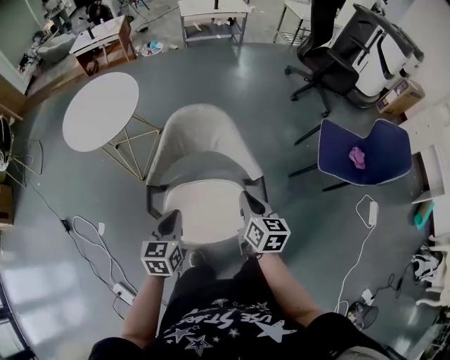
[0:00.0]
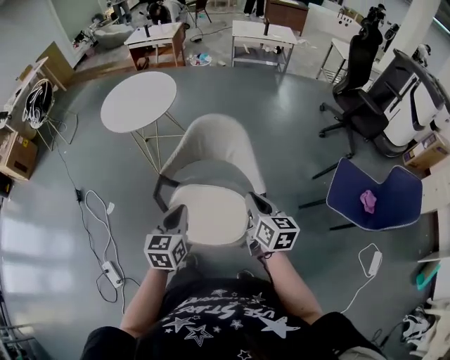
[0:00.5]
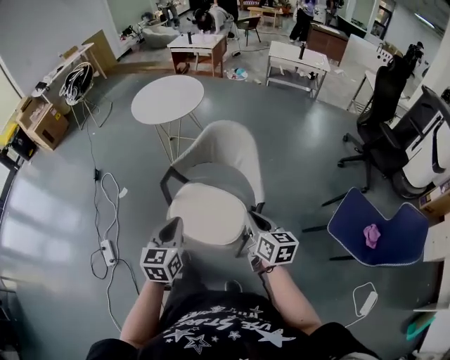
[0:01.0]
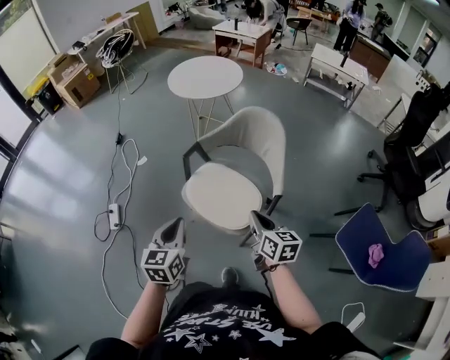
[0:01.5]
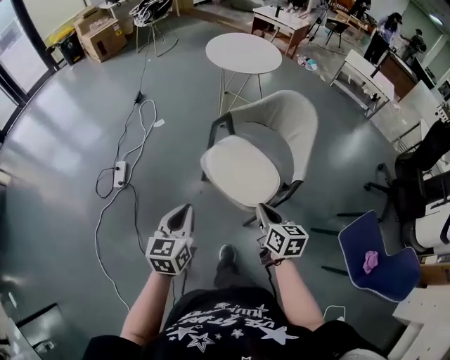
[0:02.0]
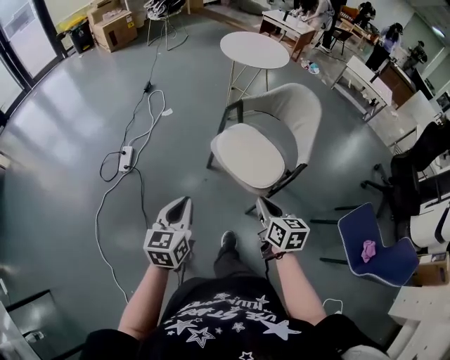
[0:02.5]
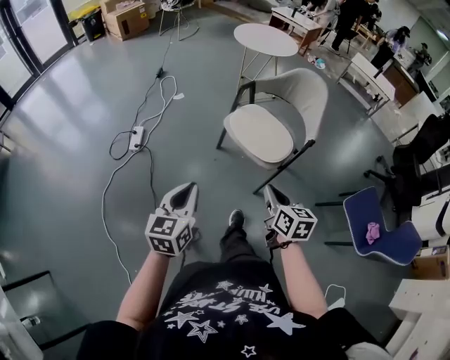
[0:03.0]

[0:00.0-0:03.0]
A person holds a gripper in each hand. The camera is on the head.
0:00.0 to 0:01.5: The right gripper changes place by approximately 10 cm, and swivels about 50 degrees. The left gripper changes place by roughly 25 cm, and turns by some 40 degrees.
0:01.5 to 0:03.0: The grippers both shift backward and to the left by about 30 cm.

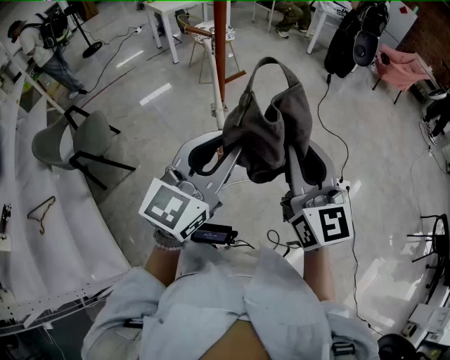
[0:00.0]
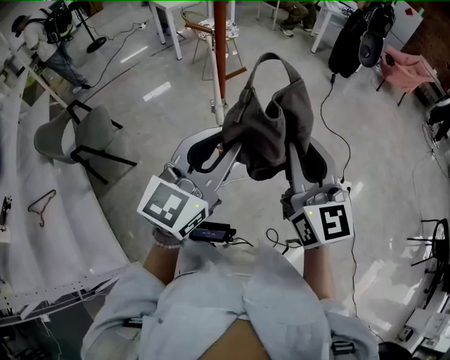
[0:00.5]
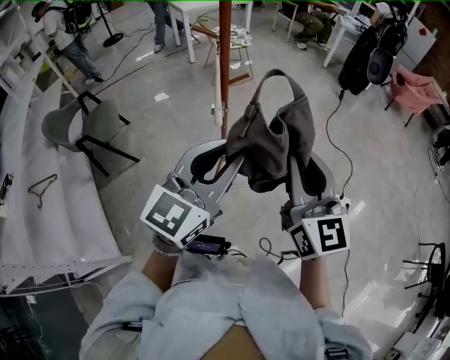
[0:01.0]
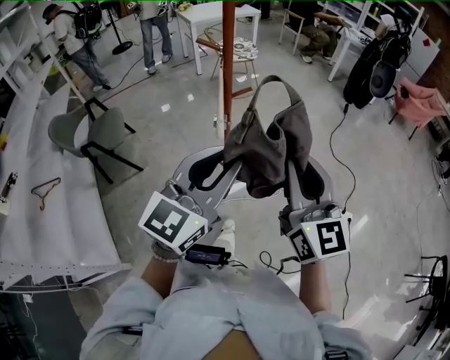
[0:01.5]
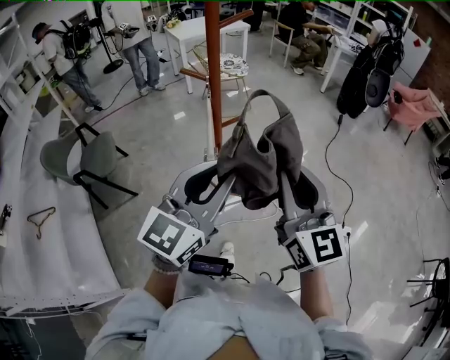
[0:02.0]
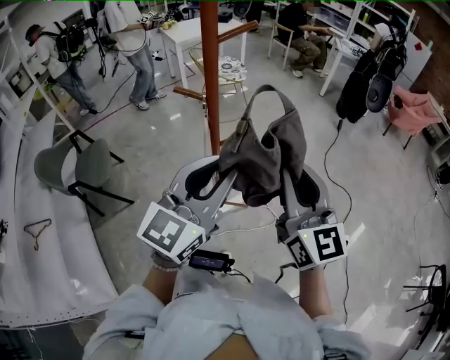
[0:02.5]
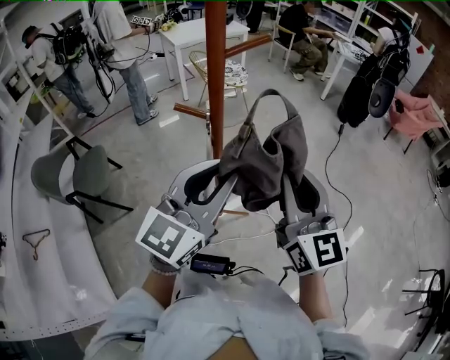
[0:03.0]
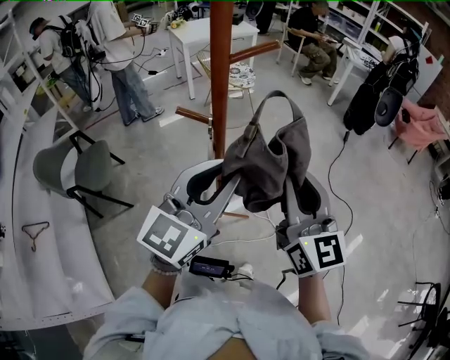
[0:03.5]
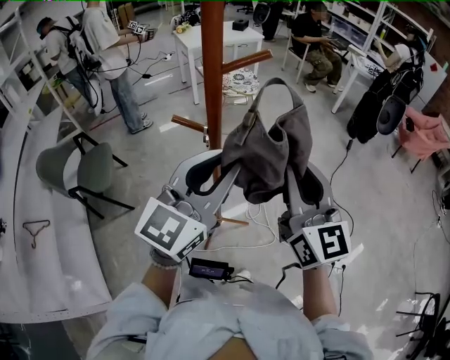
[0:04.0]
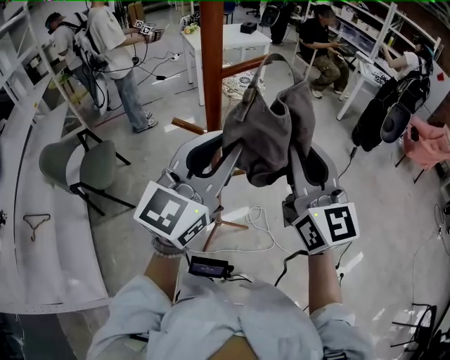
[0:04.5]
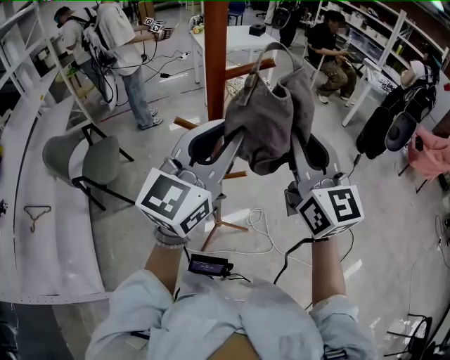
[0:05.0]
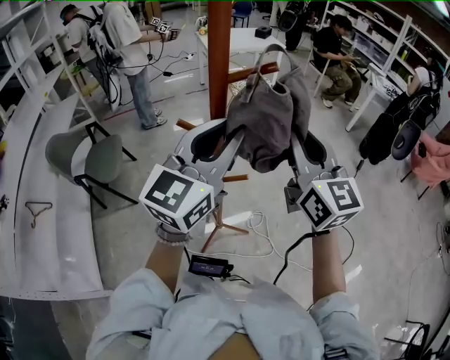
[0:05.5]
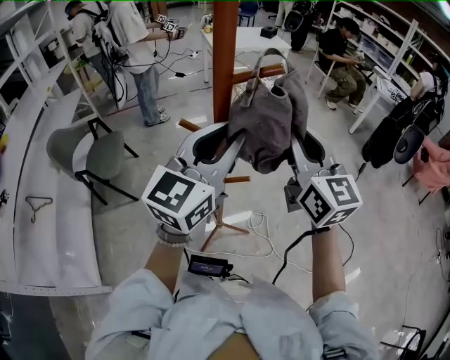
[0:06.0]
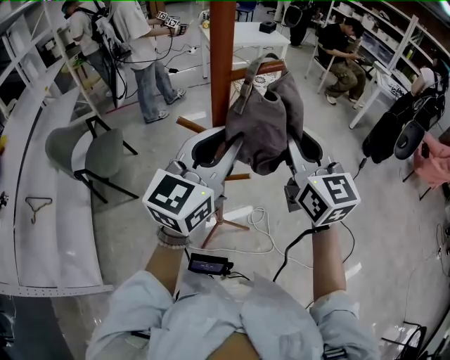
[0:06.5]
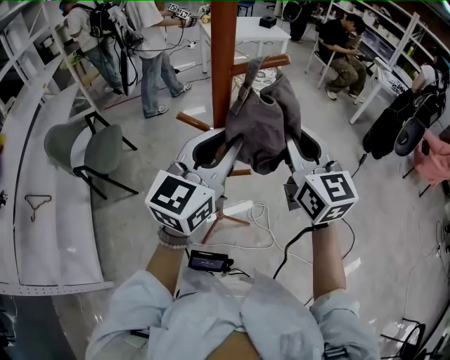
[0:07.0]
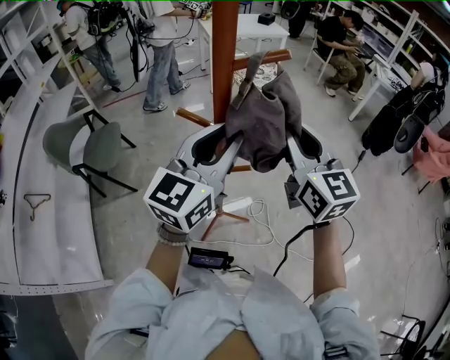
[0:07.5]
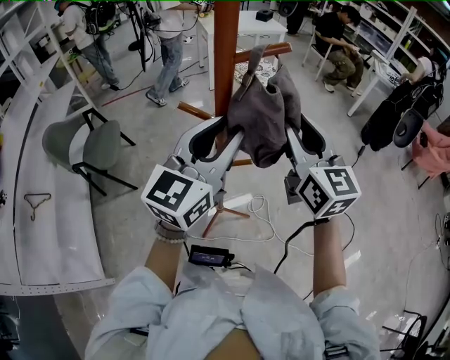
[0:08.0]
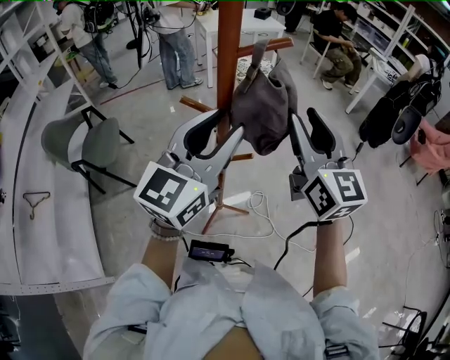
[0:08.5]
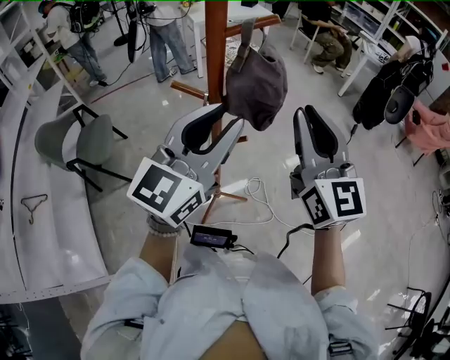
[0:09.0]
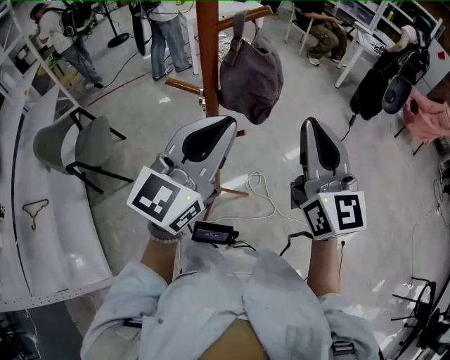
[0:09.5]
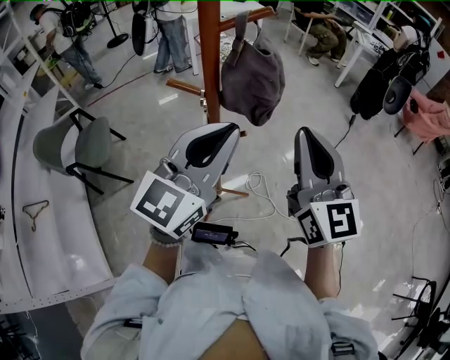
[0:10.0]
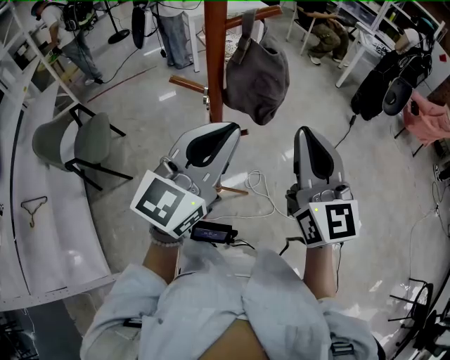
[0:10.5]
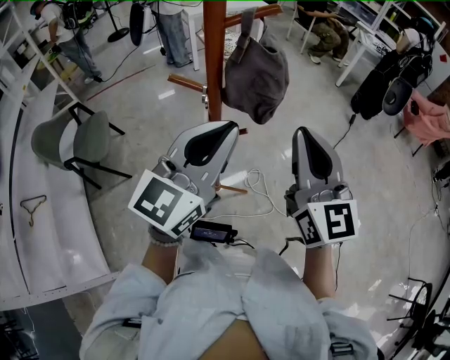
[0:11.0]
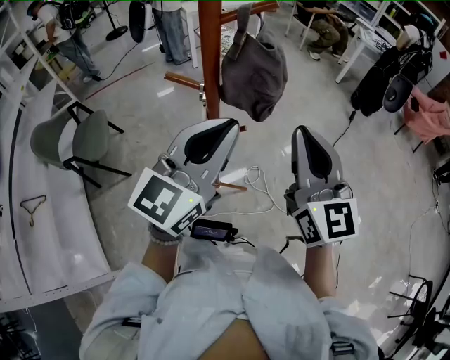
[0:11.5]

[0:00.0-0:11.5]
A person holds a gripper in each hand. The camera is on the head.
0:00.0 to 0:02.0: The grippers both shift forward by approximately 10 cm.
0:02.0 to 0:04.0: The two grippers go approximately 20 cm forward.
0:04.0 to 0:06.0: The left gripper is displaced forward by some 5 cm; the right gripper is displaced forward by roughly 10 cm.
0:06.0 to 0:07.5: There are only small adjustments of the grippers.
0:07.5 to 0:09.5: The grippers both shift backward by about 10 cm. The right gripper opens, then closes again.
0:09.5 to 0:11.5: The grippers move only a little.

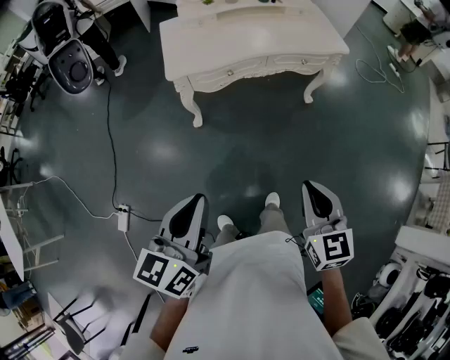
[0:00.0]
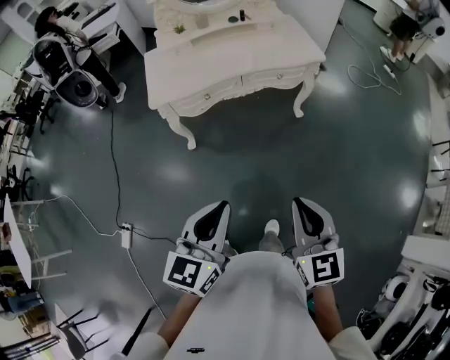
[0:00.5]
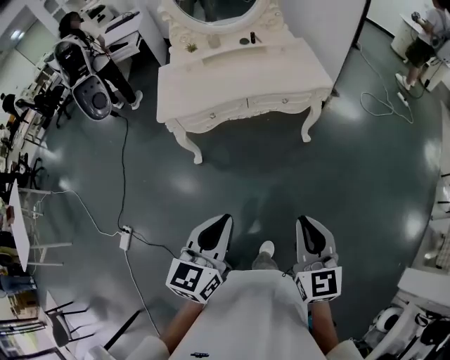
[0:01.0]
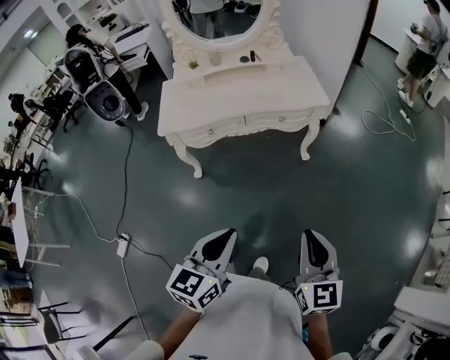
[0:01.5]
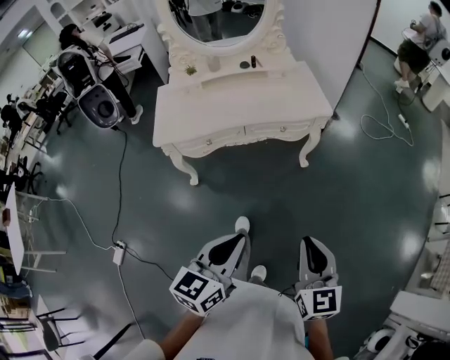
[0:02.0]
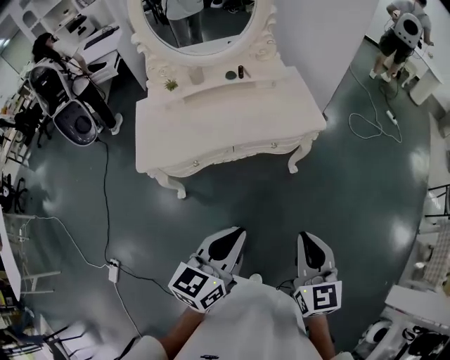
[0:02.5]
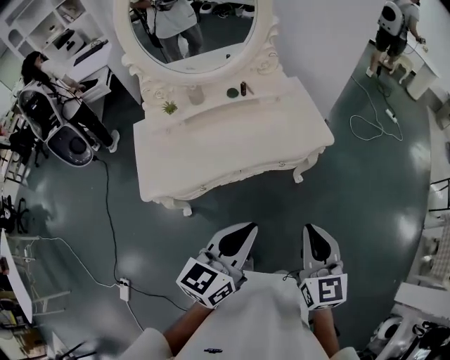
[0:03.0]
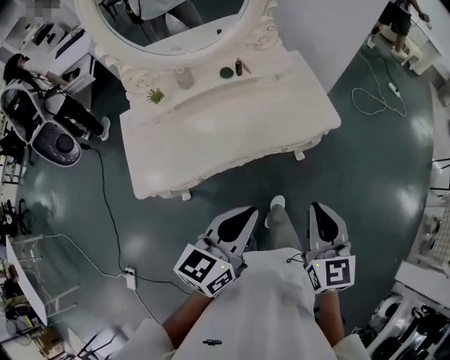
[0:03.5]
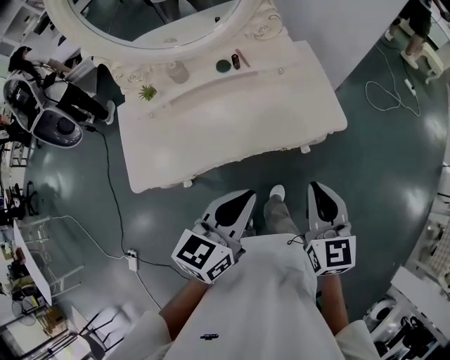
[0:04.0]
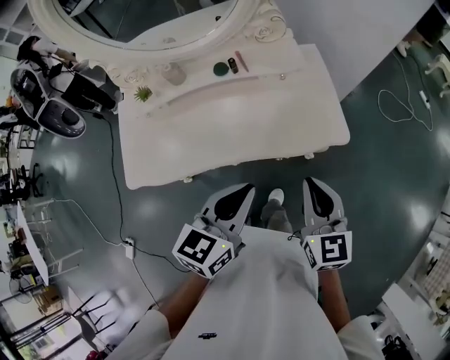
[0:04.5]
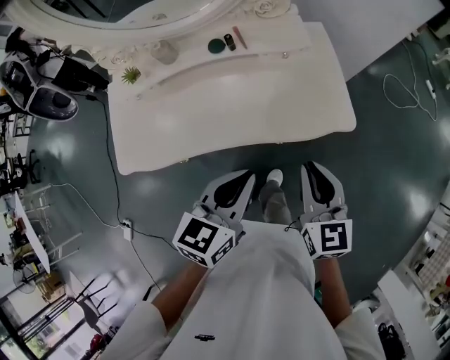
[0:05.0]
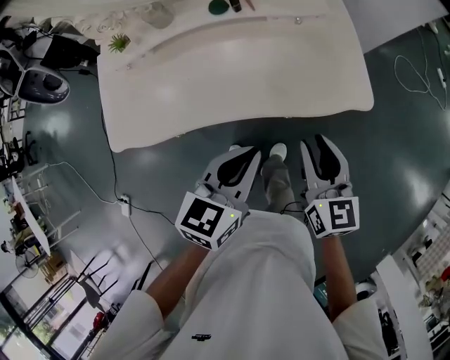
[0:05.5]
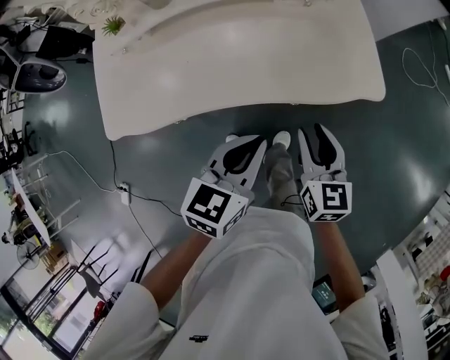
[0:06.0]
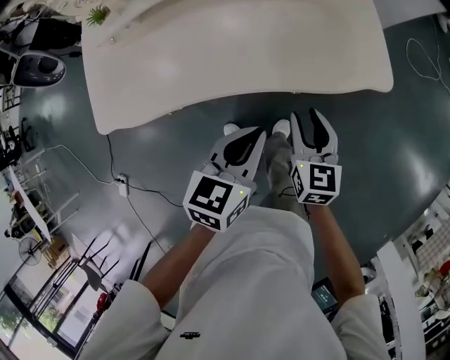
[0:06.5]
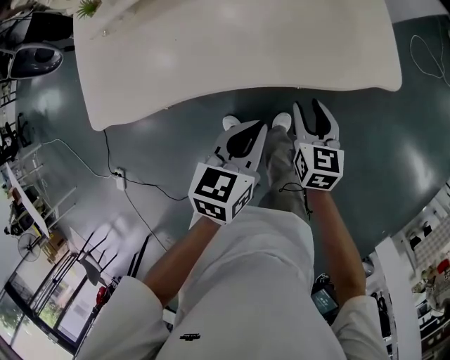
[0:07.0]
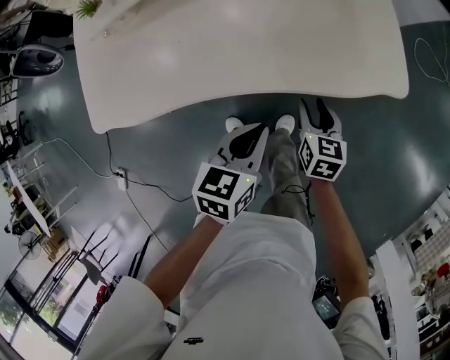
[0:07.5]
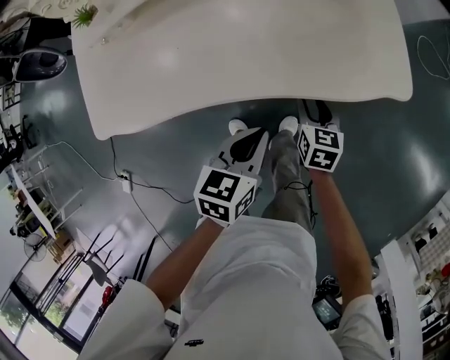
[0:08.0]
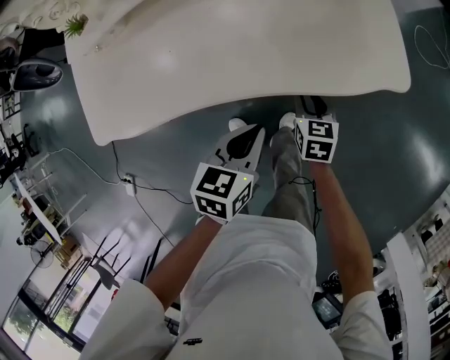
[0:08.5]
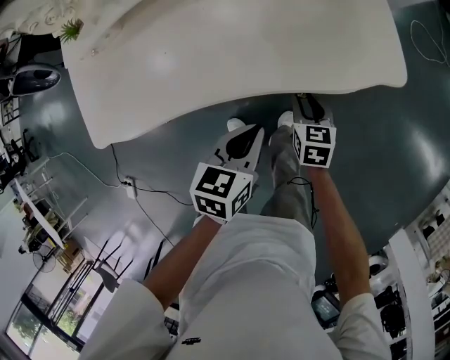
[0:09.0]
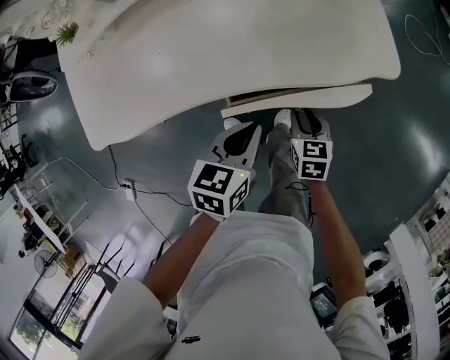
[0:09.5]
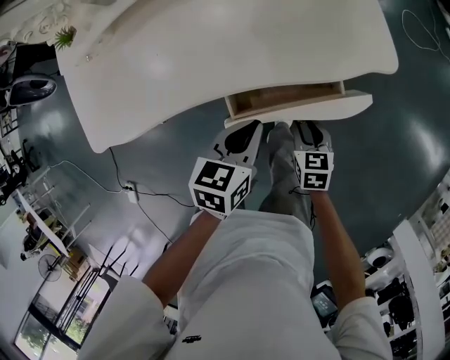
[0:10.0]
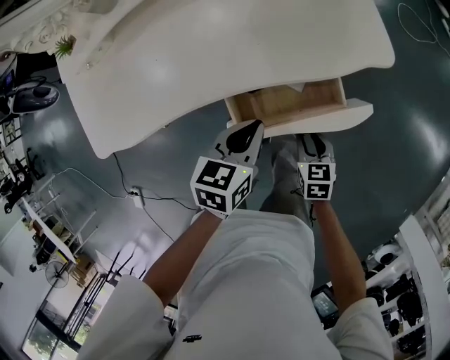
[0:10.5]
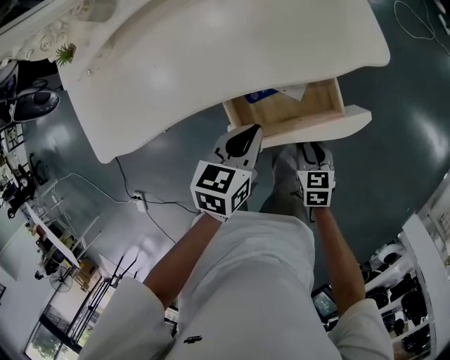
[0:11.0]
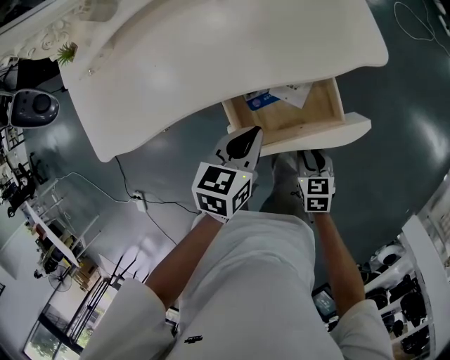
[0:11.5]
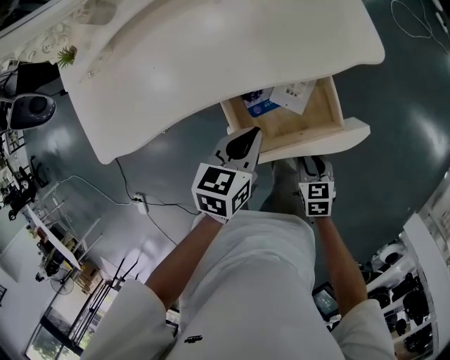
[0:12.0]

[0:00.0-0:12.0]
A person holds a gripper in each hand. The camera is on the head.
0:00.0 to 0:02.0: The two grippers go about 25 cm to the right.
0:02.0 to 0:04.0: The two grippers travel together, forward, about 40 cm.
0:04.0 to 0:06.0: The grippers both shift downward by approximately 15 cm. The right gripper opens its fingers.
0:06.0 to 0:08.0: The left gripper goes some 15 cm downward. Meanwhile the right gripper goes about 20 cm downward.
0:08.0 to 0:10.0: The right gripper goes approximately 10 cm backward.
0:10.0 to 0:12.0: The right gripper shifts about 10 cm backward.
